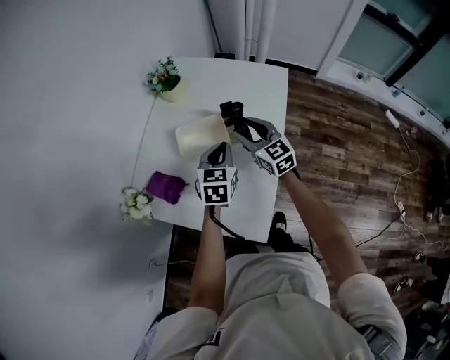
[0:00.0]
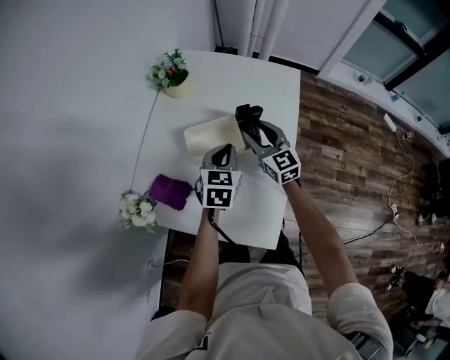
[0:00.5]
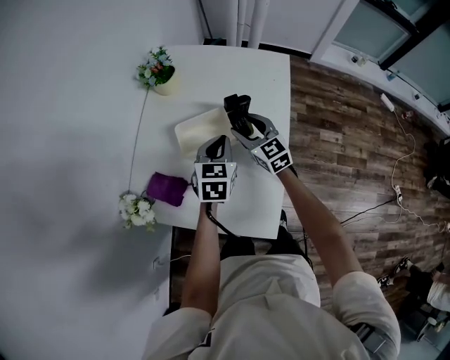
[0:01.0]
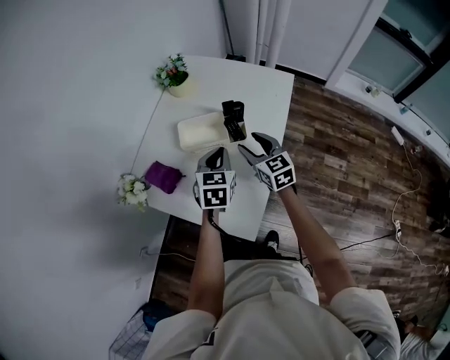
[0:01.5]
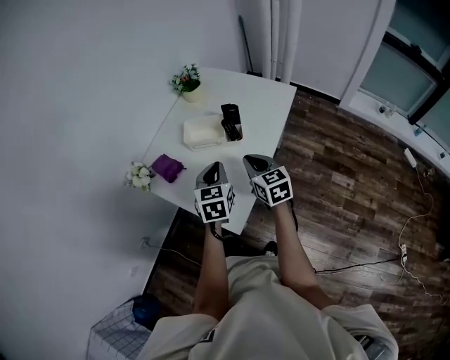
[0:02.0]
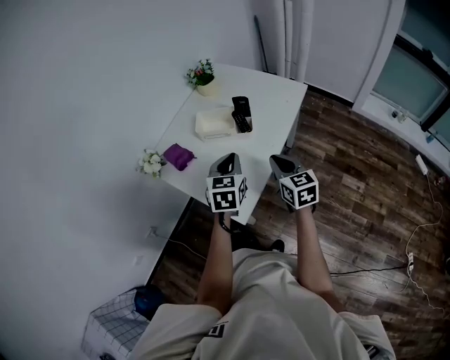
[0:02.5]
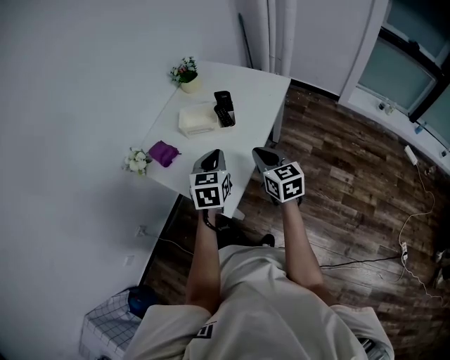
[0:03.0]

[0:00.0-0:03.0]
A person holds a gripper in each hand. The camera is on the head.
0:00.0 to 0:01.5: The right gripper travels backward by some 5 cm.
0:01.5 to 0:03.0: The right gripper goes roughly 15 cm backward, and closes; the left gripper heads backward and upward, covering about 15 cm.

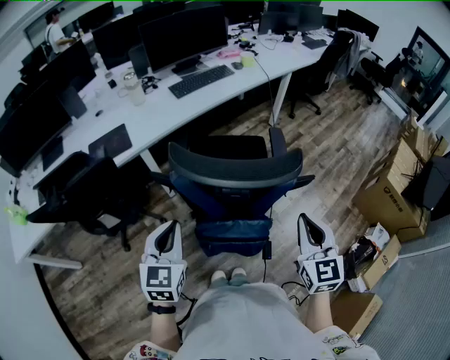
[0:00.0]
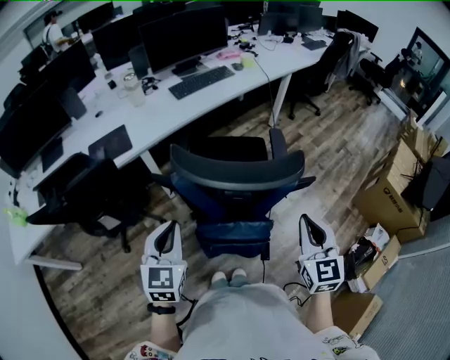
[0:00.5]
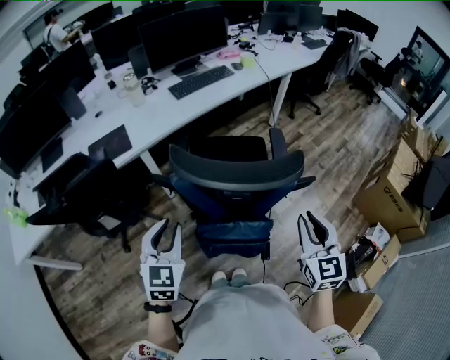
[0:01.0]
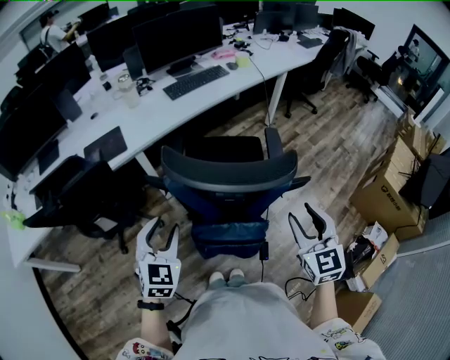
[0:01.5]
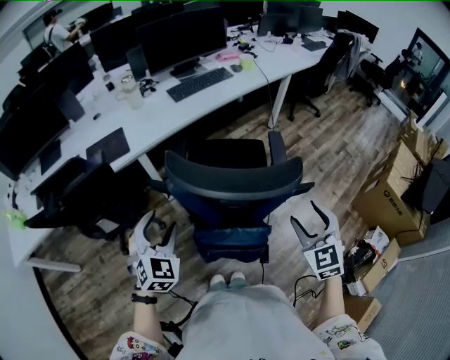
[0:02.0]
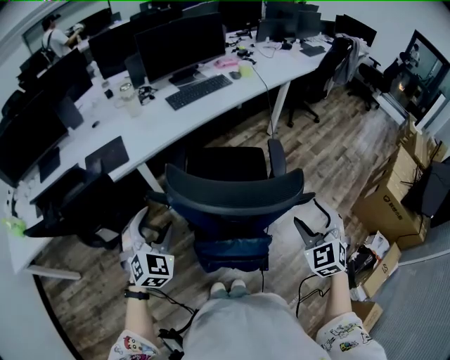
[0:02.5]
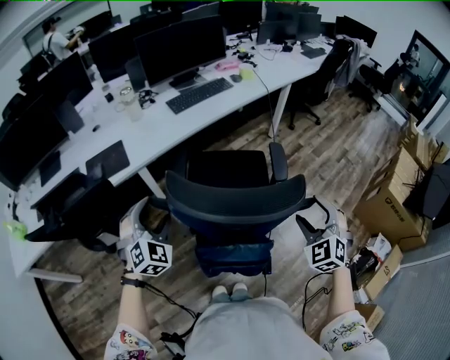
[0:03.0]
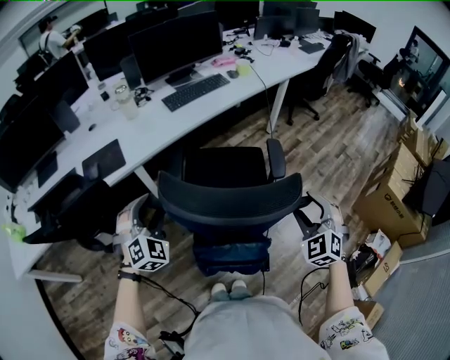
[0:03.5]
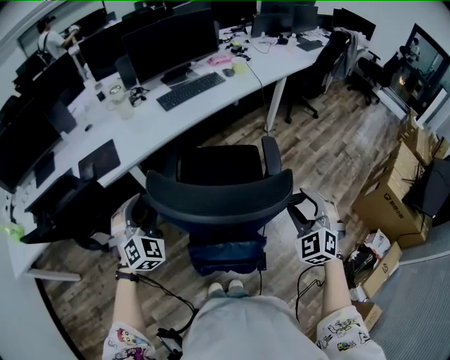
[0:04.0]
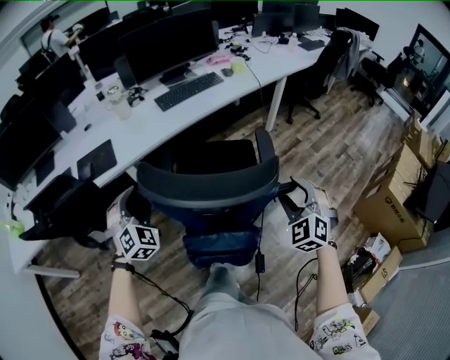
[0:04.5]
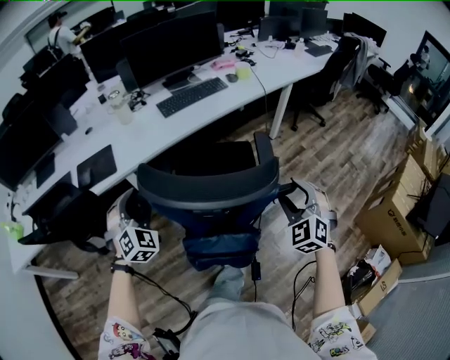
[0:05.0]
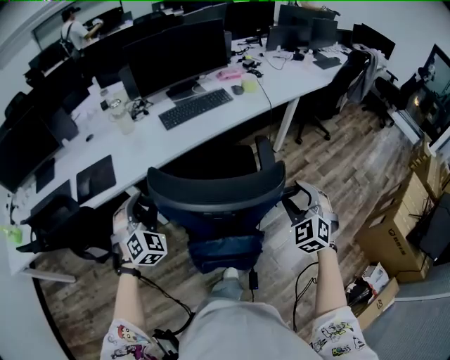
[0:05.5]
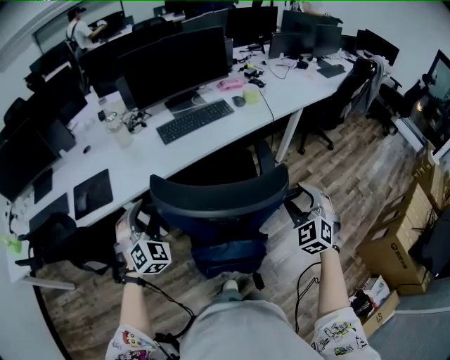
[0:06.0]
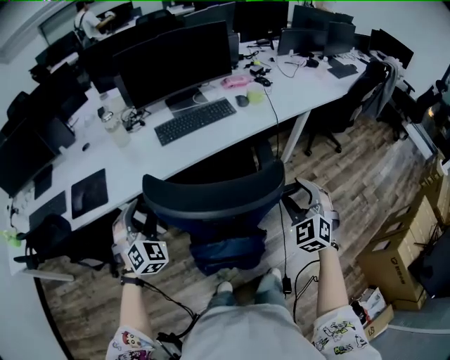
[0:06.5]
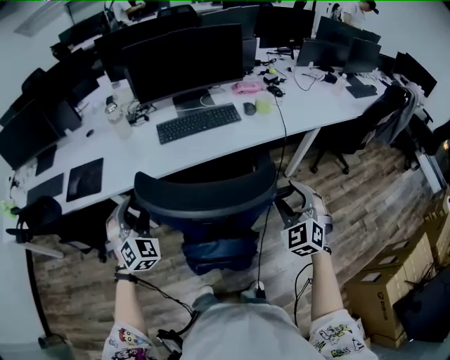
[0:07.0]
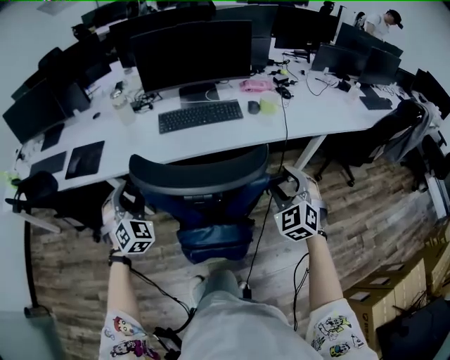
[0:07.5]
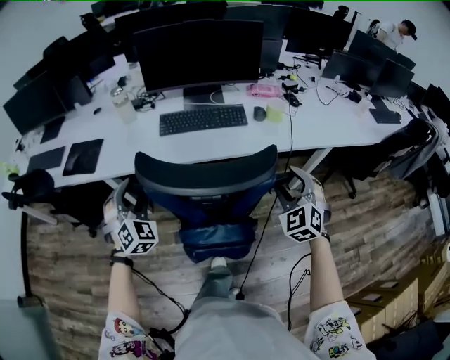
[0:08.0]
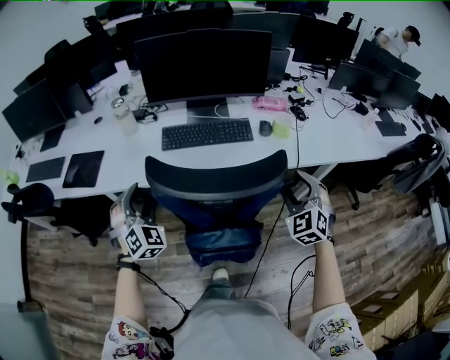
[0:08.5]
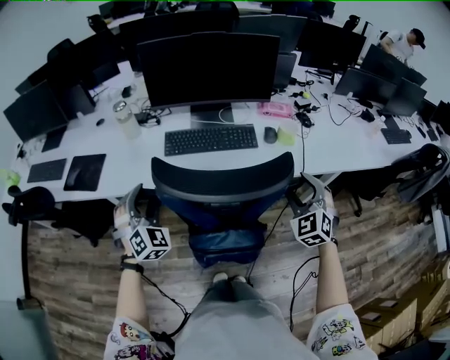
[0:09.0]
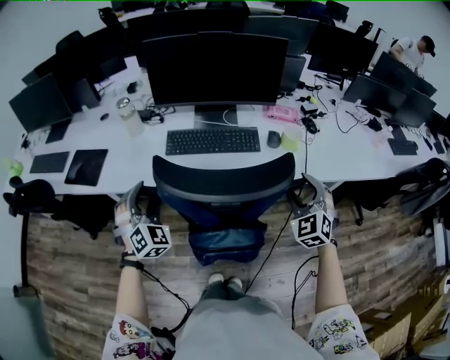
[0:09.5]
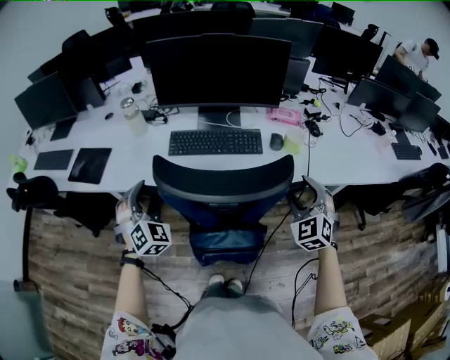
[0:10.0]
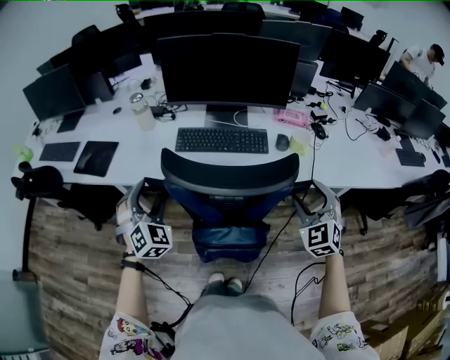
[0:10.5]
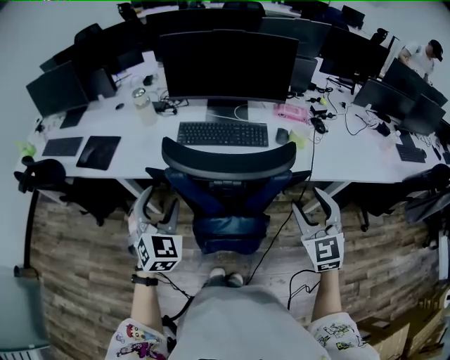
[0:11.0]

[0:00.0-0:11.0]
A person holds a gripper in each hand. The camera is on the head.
0:00.0 to 0:02.0: The right gripper shifts by about 5 cm, changes its angle by some 20 degrees, and opens its fingers; the left gripper changes place by roughly 5 cm, swivels some 30 degrees, and opens.
0:02.0 to 0:03.5: The grippers both shift forward by about 10 cm. The right gripper turns by some 20 degrees; the left gripper changes its angle by approximately 20 degrees.
0:03.5 to 0:05.5: Both grippers move forward, approximately 15 cm.
0:05.5 to 0:07.5: The right gripper travels forward and to the right by roughly 25 cm, and turns by roughly 20 degrees. Meanwhile the left gripper goes roughly 15 cm to the right and forward, and turns by about 20 degrees.
0:07.5 to 0:09.0: The left gripper shifts some 10 cm forward and to the right, while the right gripper shifts roughly 15 cm forward.
0:09.0 to 0:11.0: The left gripper is displaced backward by about 10 cm, while the right gripper is displaced backward and upward by roughly 10 cm, and turns by about 30 degrees.

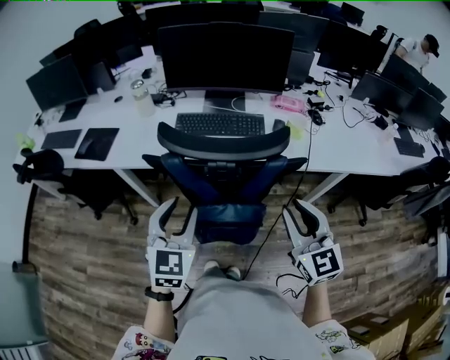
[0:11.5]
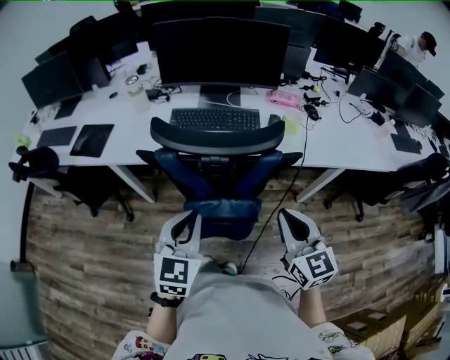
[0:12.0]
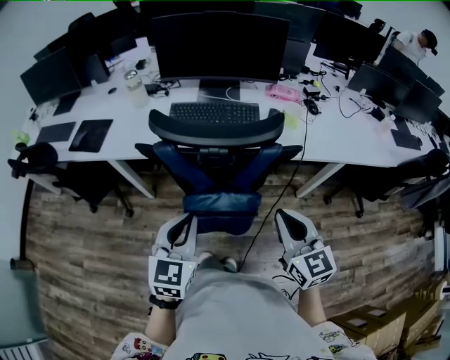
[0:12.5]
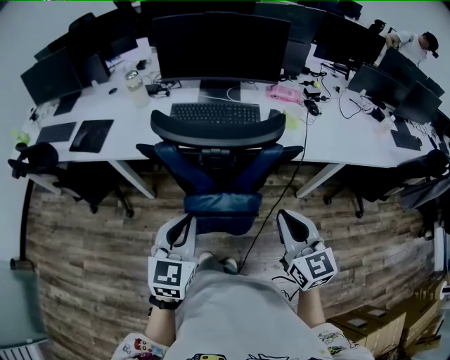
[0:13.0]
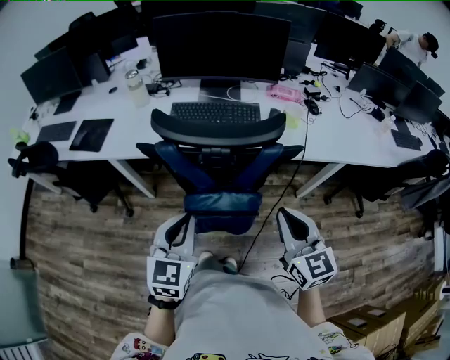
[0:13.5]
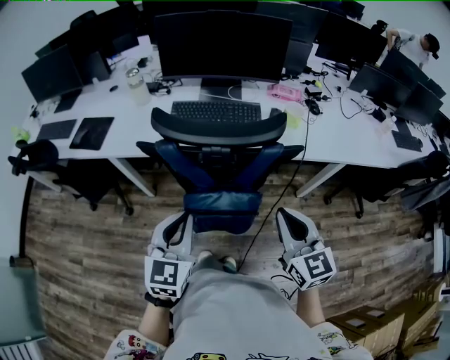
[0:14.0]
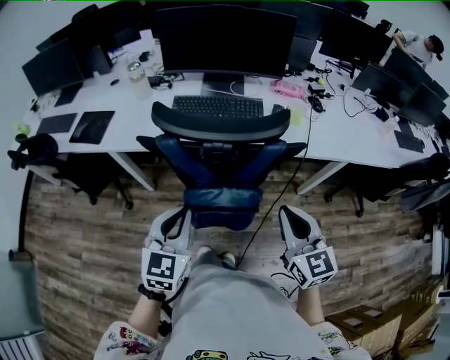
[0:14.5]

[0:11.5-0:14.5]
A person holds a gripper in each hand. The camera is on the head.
0:11.5 to 0:13.0: The right gripper ends up approximately 5 cm from where it was. The left gripper is displaced backward by roughly 5 cm, and closes.
0:13.0 to 0:14.5: The grippers move only a little.

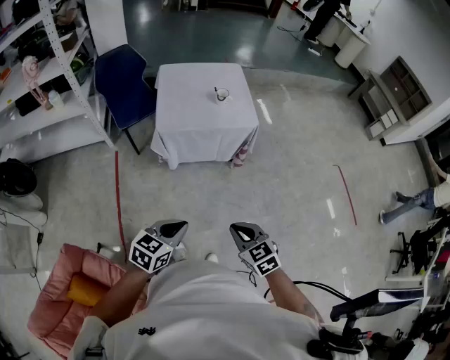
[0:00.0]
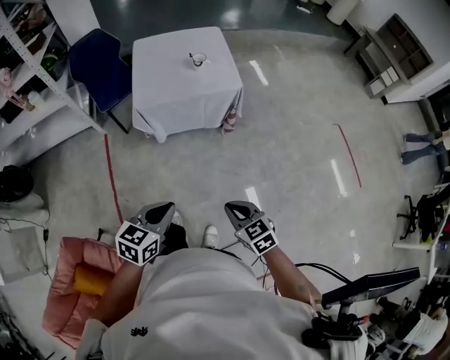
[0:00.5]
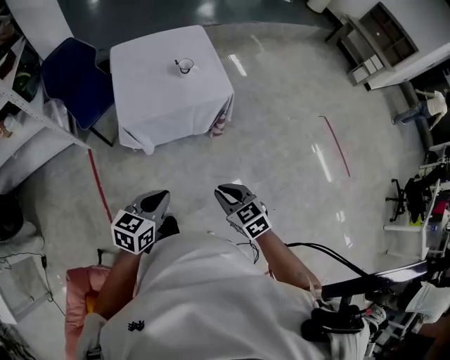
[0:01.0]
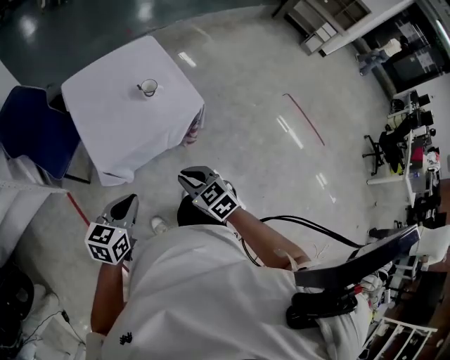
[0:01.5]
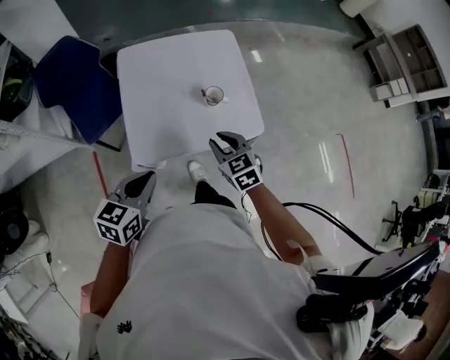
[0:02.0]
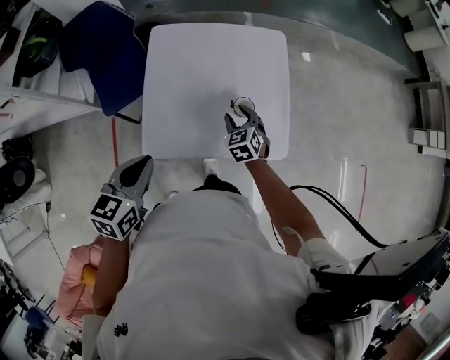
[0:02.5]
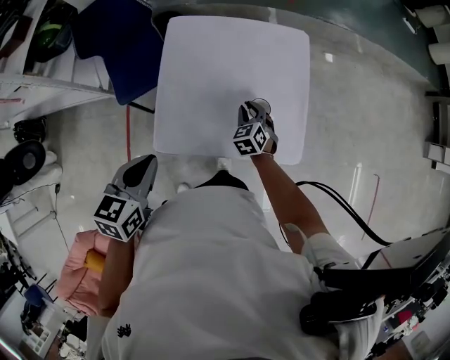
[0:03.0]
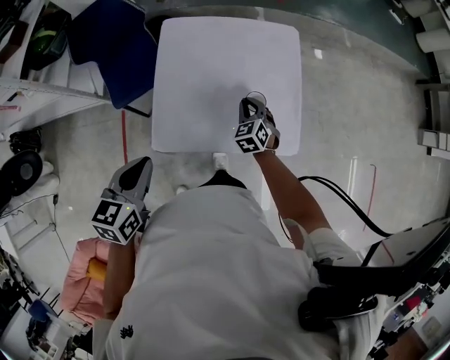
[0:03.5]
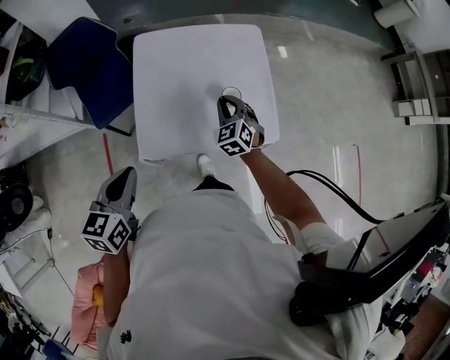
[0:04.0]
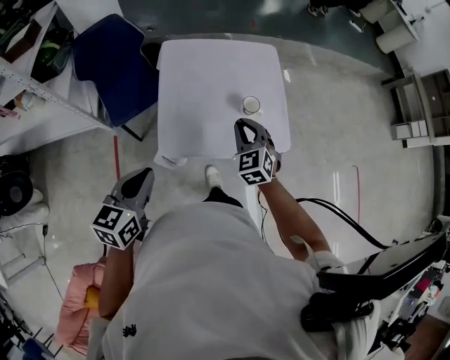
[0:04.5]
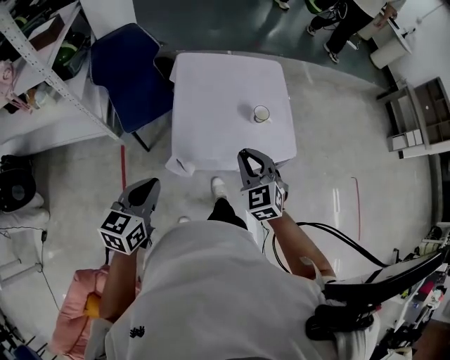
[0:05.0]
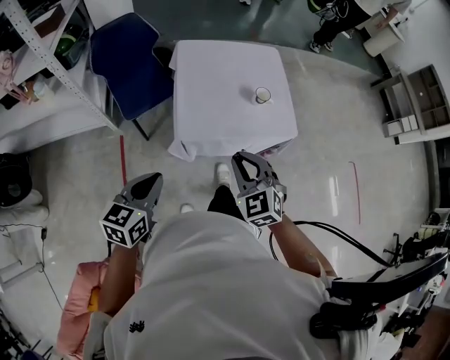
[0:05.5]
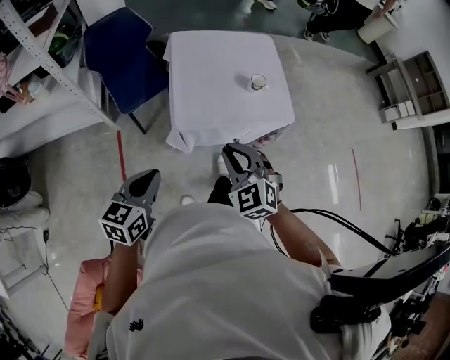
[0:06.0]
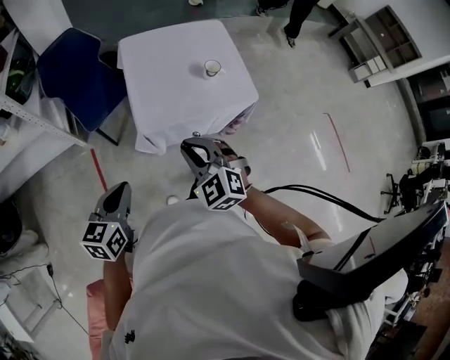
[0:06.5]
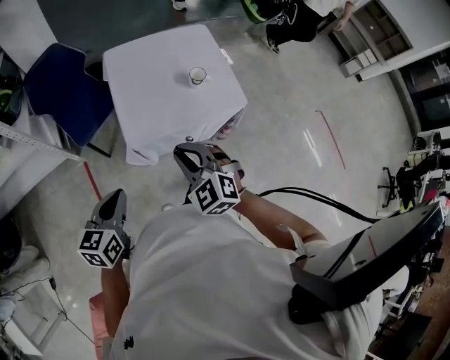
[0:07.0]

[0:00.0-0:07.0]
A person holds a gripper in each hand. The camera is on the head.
0:00.0 to 0:02.0: Both grippers are carried forward, some 60 cm. The right gripper opens up.
0:02.0 to 0:03.5: The left gripper shifts about 10 cm forward and to the left, and turns by some 20 degrees. The right gripper shifts approximately 25 cm forward and downward, rotates roughly 20 degrees, and opens, then closes again.
0:03.5 to 0:05.0: The left gripper moves backward and to the left, roughly 20 cm; the right gripper shifts approximately 35 cm backward and upward.
0:05.0 to 0:07.0: The left gripper shifts about 5 cm backward; the right gripper heads backward, covering approximately 10 cm.

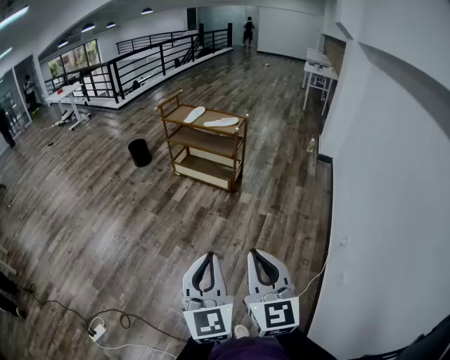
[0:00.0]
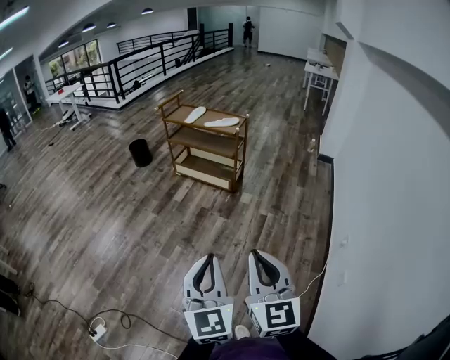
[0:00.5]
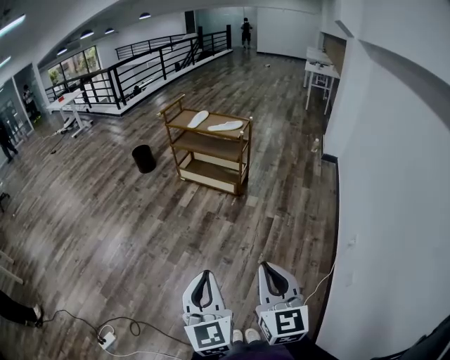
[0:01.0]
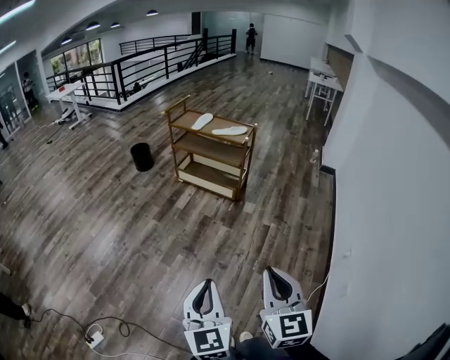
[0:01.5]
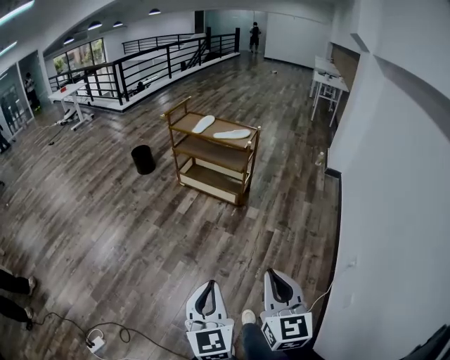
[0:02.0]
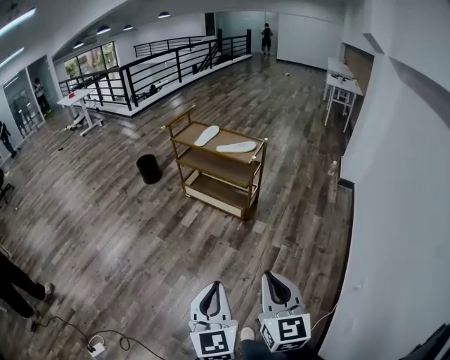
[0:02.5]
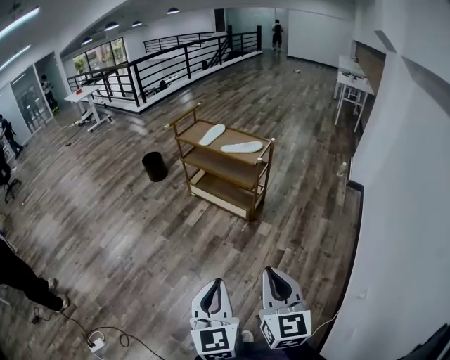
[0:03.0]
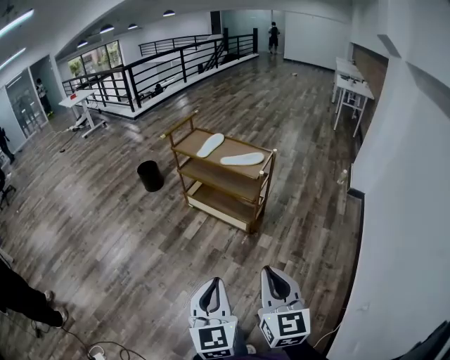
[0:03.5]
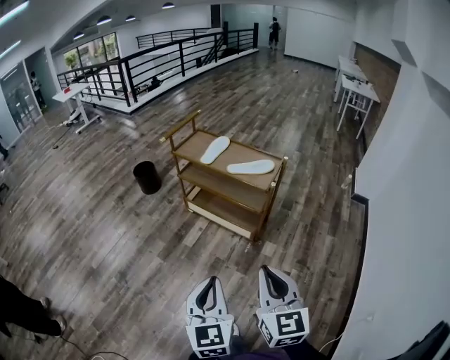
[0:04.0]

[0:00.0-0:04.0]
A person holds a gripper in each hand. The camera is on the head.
0:00.0 to 0:02.0: The right gripper heads forward, covering about 10 cm; the left gripper moves forward and downward, roughly 10 cm.
0:02.0 to 0:04.0: The grippers both shift forward by about 40 cm.
